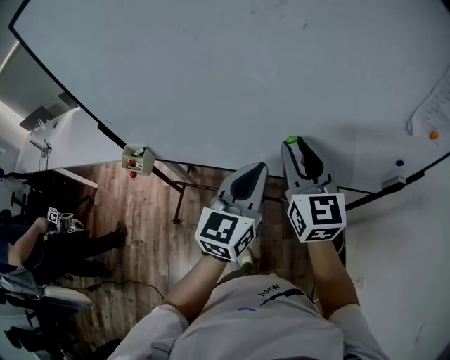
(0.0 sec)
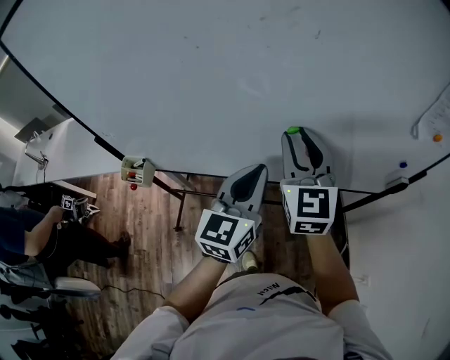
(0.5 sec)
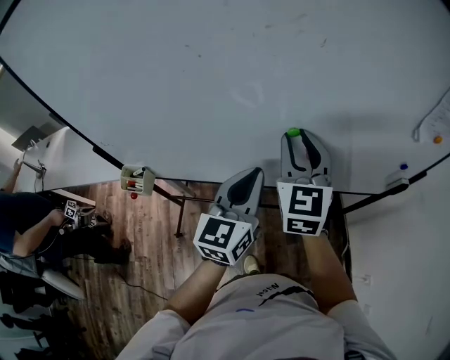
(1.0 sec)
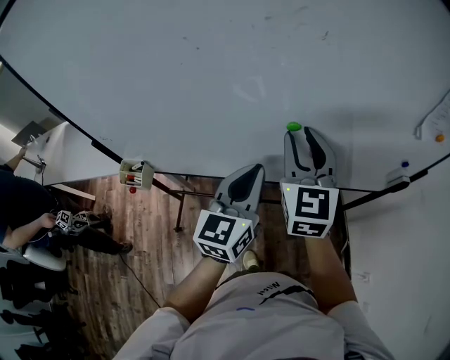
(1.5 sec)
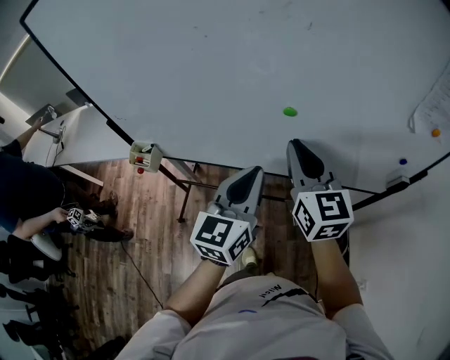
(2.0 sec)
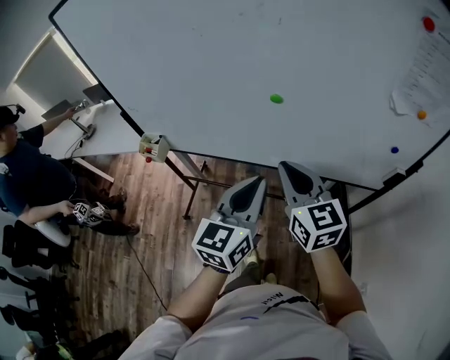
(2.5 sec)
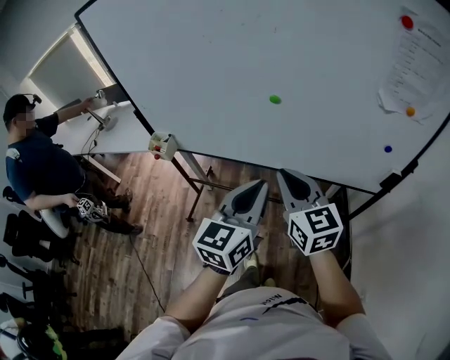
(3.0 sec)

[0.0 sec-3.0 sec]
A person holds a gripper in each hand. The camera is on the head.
0.0 sec to 1.5 sec: The left gripper changes place by approximately 5 cm; the right gripper shifts by approximately 5 cm.
1.5 sec to 3.0 sec: Both grippers move backward, roughly 20 cm. The right gripper rotates roughly 30 degrees, and closes.

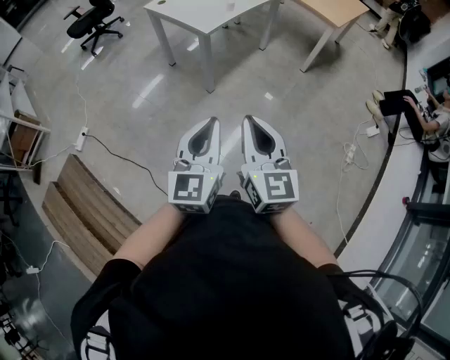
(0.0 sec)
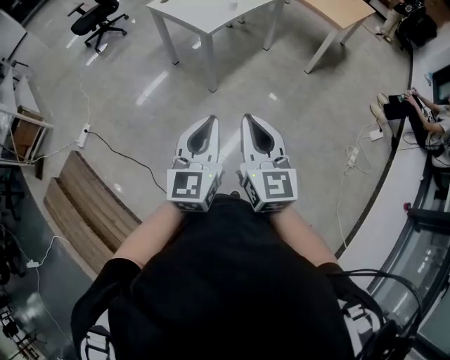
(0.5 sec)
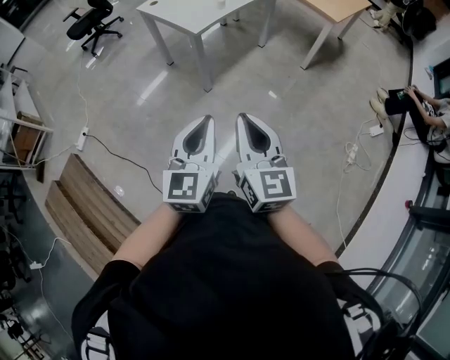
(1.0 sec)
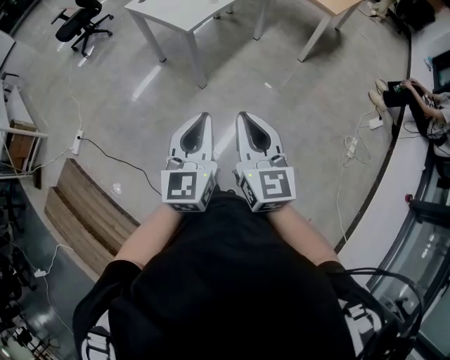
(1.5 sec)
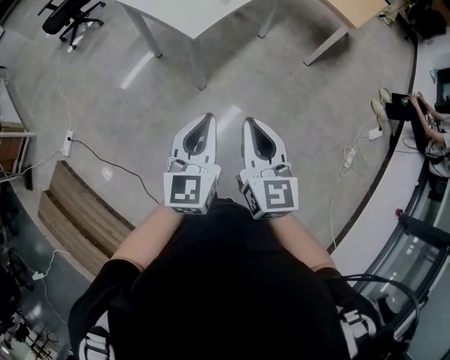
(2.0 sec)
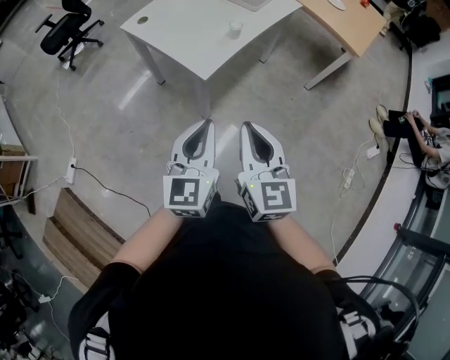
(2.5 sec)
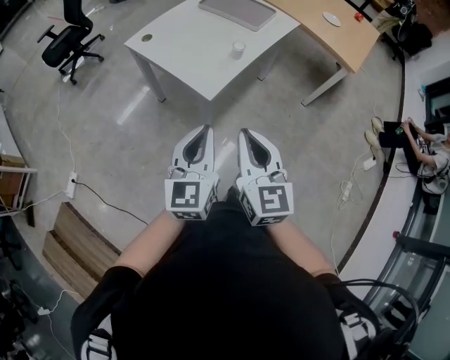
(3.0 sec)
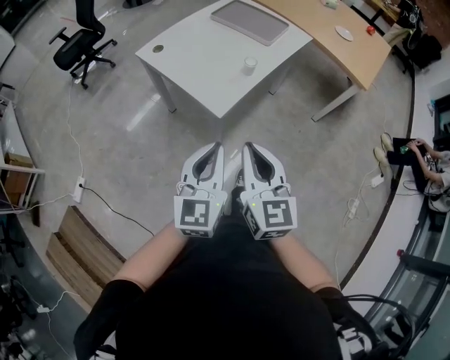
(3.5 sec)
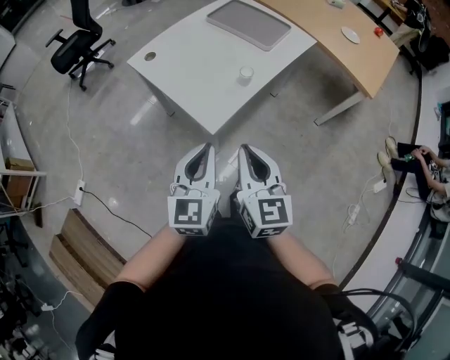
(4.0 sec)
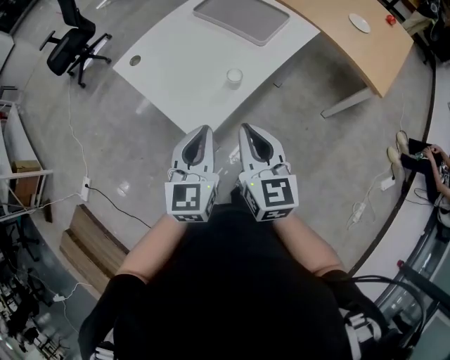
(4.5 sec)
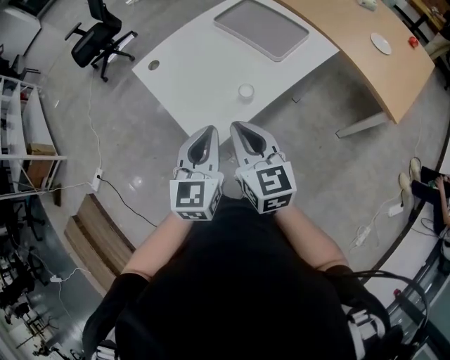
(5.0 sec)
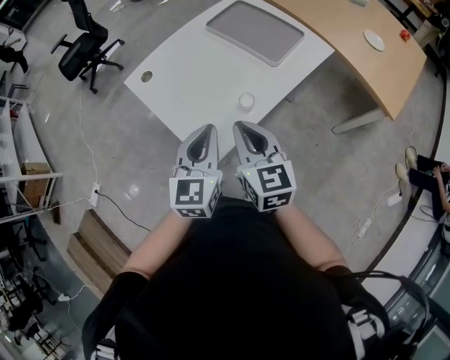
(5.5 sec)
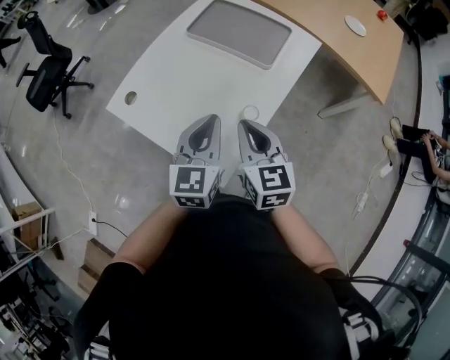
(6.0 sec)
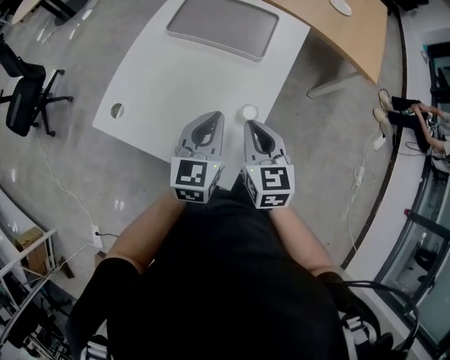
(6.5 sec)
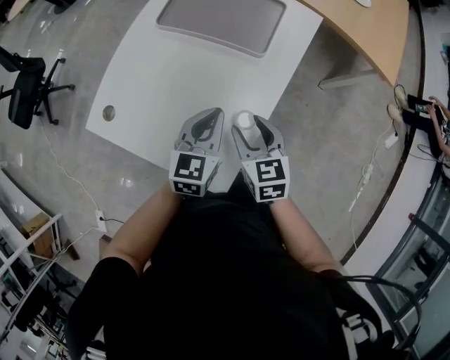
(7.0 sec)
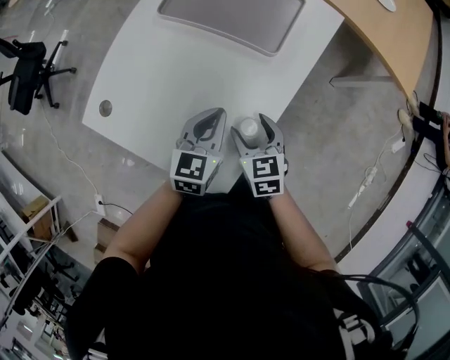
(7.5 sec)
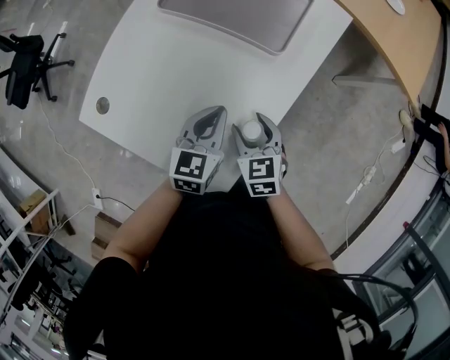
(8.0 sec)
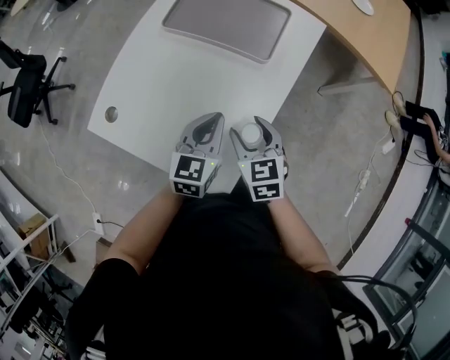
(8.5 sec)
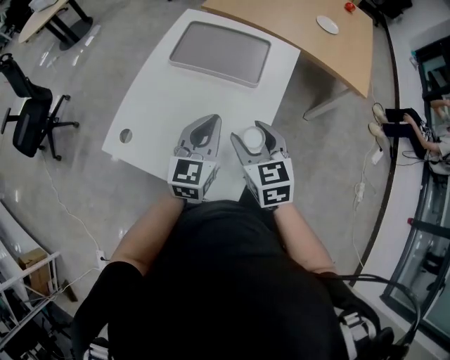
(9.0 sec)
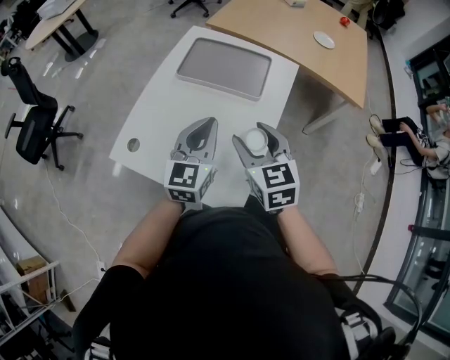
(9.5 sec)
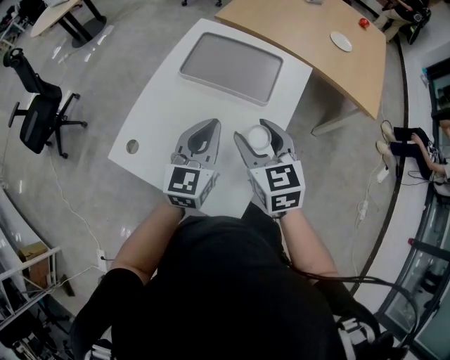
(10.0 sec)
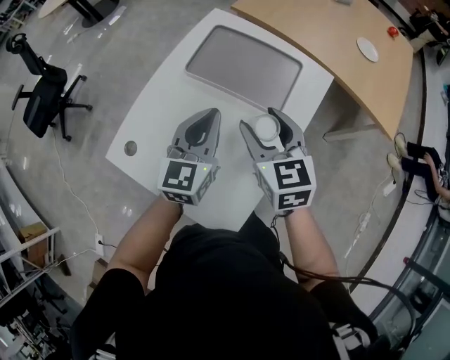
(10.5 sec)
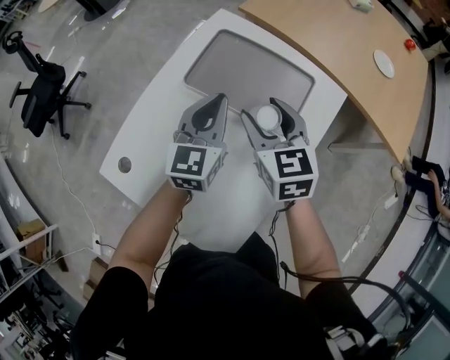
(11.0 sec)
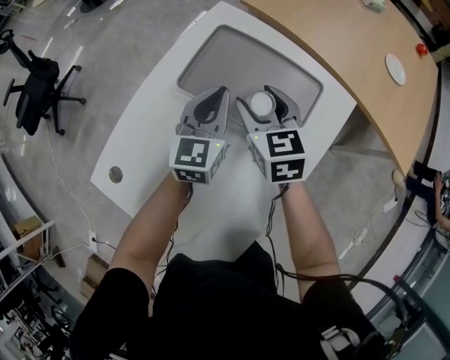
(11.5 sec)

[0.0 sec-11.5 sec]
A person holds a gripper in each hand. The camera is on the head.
0.0 sec to 2.0 sec: Both grippers move forward, approximately 25 cm.
2.0 sec to 4.0 sec: Both grippers travel together forward, about 30 cm.
4.0 sec to 6.0 sec: Both grippers travel together forward, roughly 35 cm.
6.0 sec to 7.5 sec: The grippers both shift downward and forward by approximately 20 cm. The right gripper changes its angle by roughly 20 degrees, and opens up, while the left gripper turns by approximately 20 degrees.
7.5 sec to 9.5 sec: Both grippers travel together upward, approximately 25 cm. The left gripper swivels roughly 20 degrees; the right gripper swivels approximately 20 degrees.
9.5 sec to 11.5 sec: The two grippers go some 40 cm forward and downward.

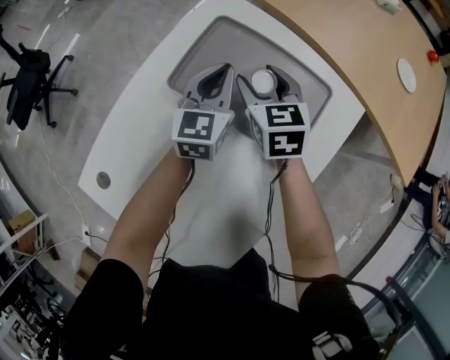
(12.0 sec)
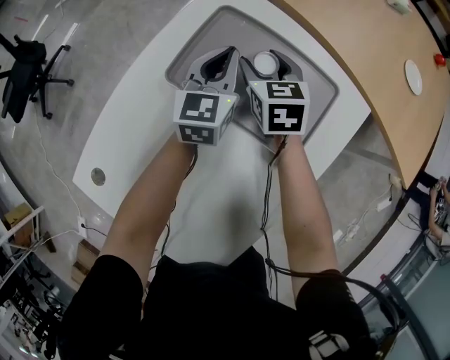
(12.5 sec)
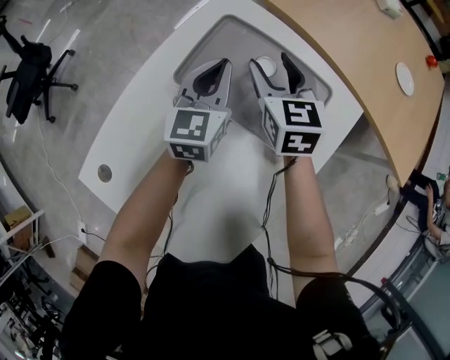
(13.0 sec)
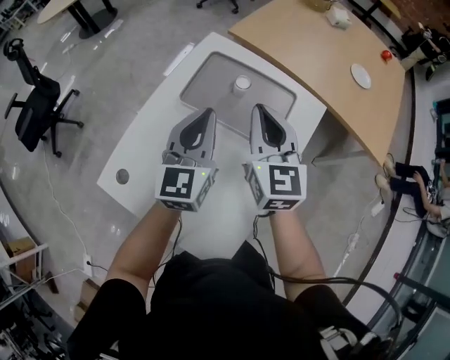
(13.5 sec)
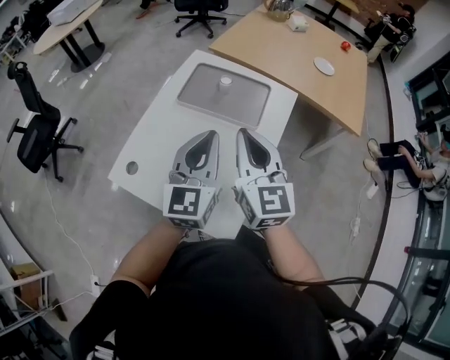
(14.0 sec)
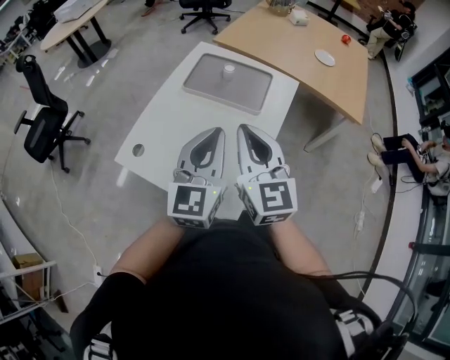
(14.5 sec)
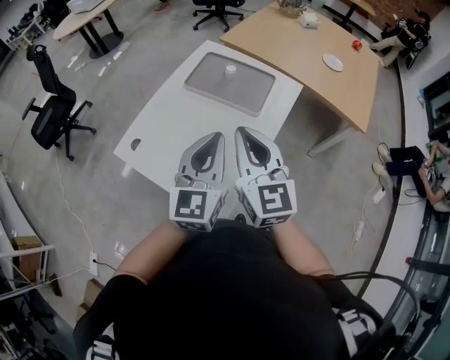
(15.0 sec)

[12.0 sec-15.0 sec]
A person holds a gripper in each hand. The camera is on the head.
12.0 sec to 13.5 sec: The right gripper moves upward and backward, approximately 30 cm, turns by some 30 degrees, and closes its fingers. The left gripper is displaced backward and upward by about 25 cm.
13.5 sec to 15.0 sec: The right gripper heads backward, covering approximately 30 cm; the left gripper is displaced backward and upward by some 30 cm.

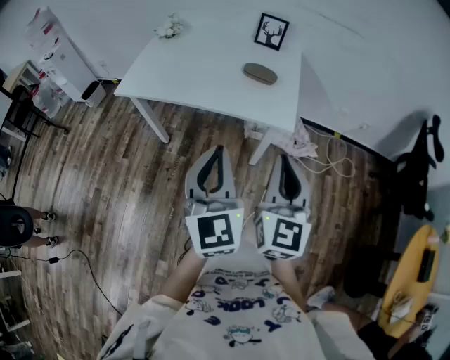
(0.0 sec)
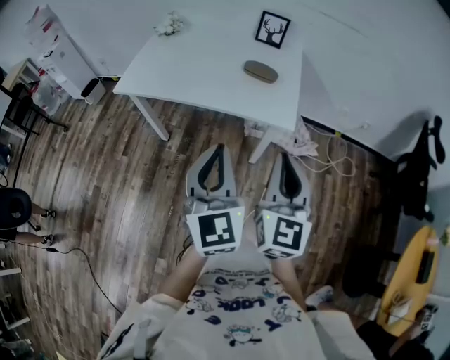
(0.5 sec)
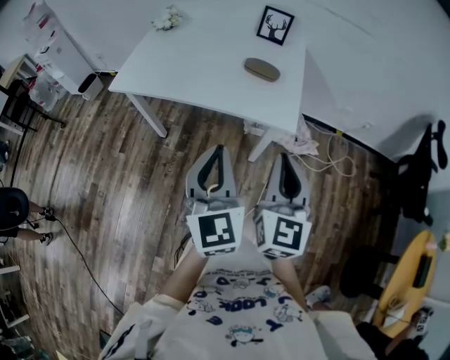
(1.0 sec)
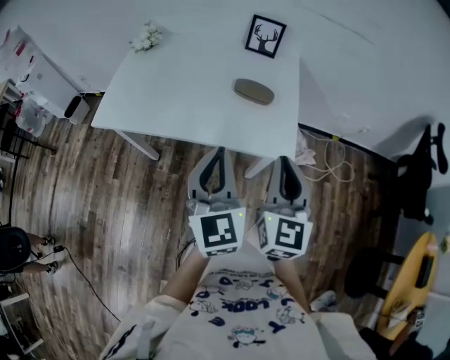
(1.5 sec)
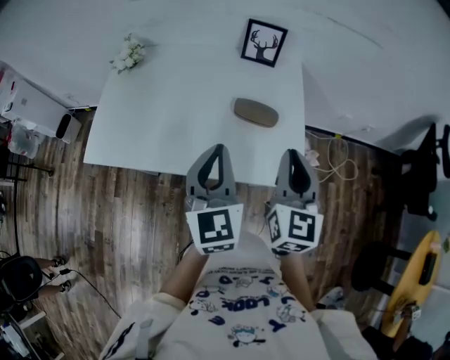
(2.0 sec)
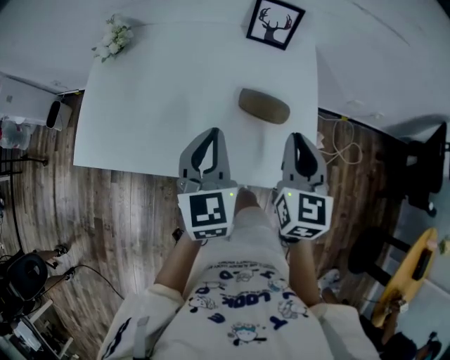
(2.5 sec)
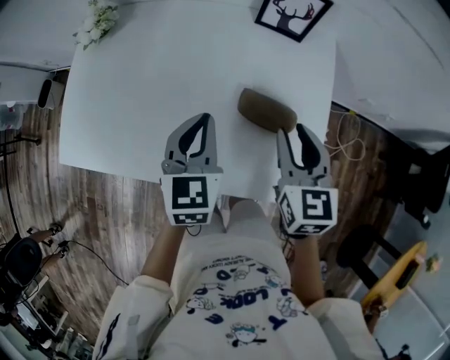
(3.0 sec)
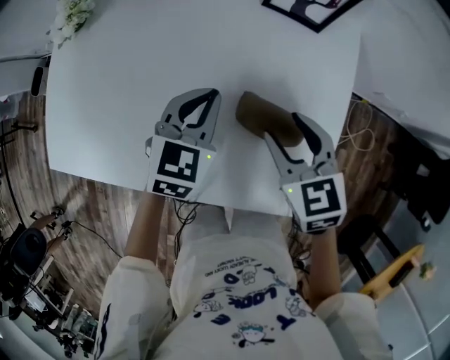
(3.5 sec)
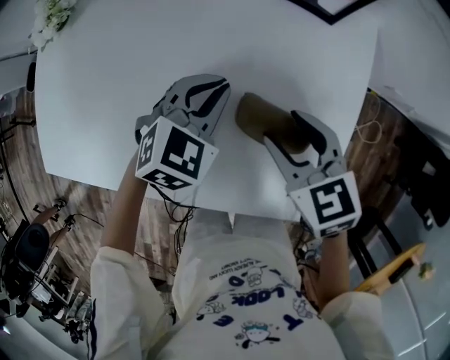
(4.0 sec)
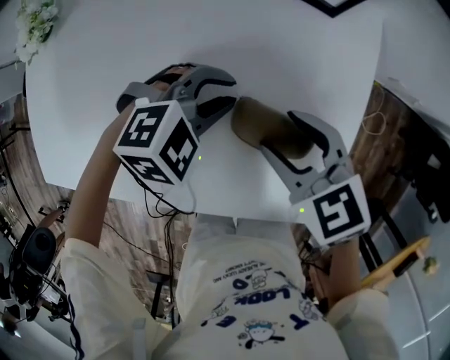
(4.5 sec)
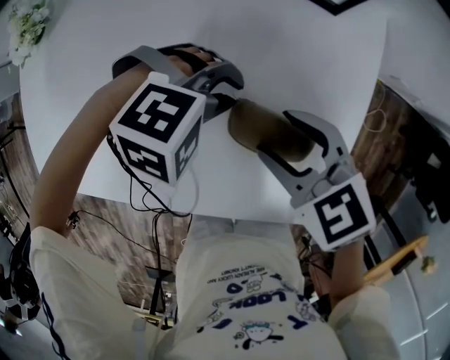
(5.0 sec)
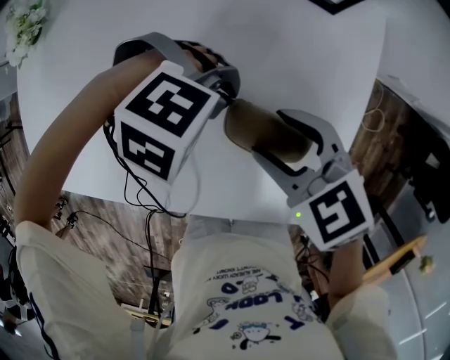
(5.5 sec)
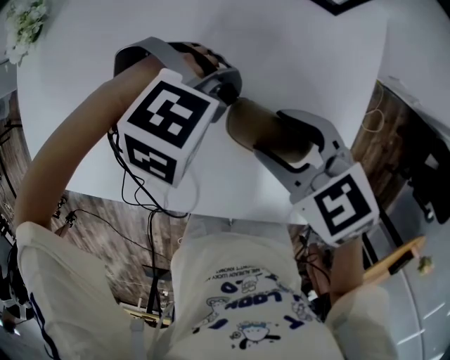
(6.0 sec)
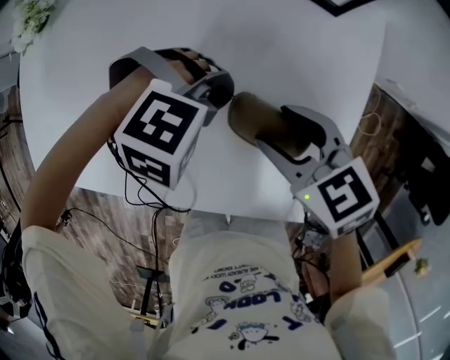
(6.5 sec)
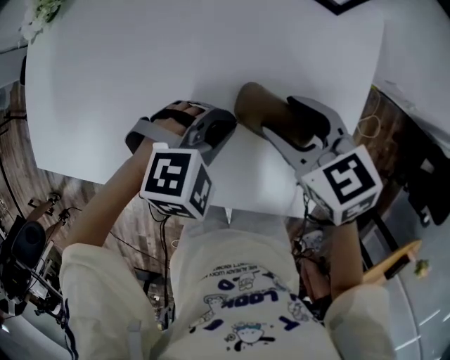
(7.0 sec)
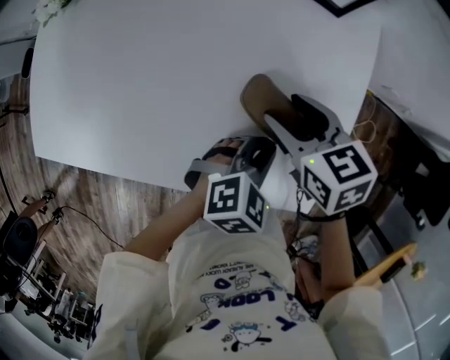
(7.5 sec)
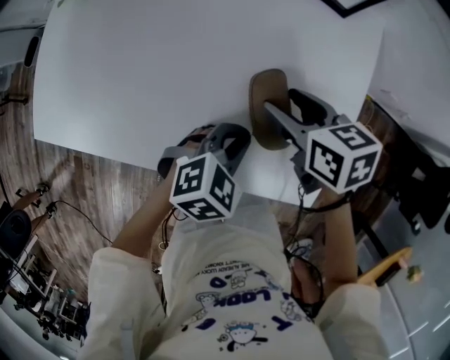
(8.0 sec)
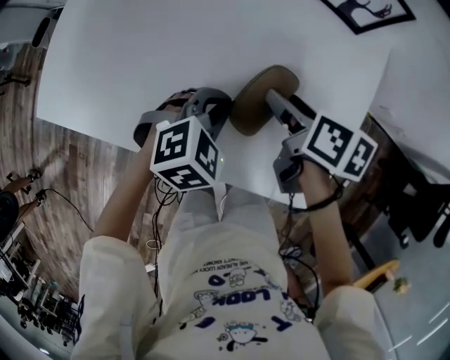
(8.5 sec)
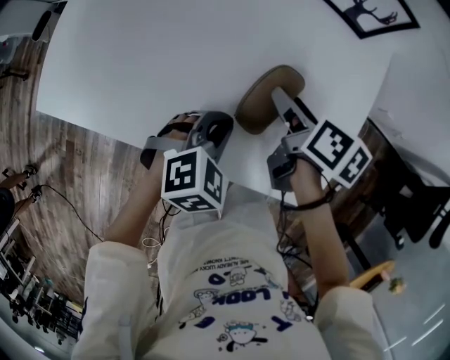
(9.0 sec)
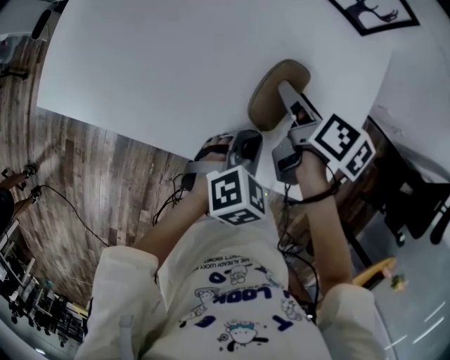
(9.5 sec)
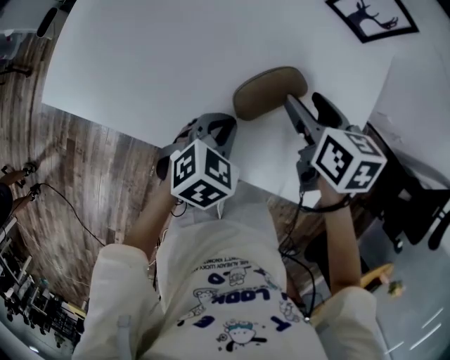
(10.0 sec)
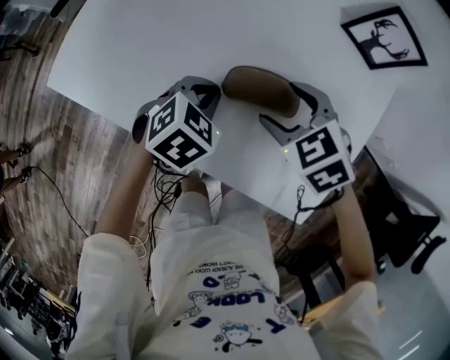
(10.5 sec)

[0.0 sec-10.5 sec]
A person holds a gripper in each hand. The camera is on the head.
0.0 sec to 2.0 sec: Both grippers travel together forward, approximately 30 cm.
2.0 sec to 4.0 sec: Both grippers travel together forward and downward, about 30 cm. The right gripper angles its fingers downward, by about 40 degrees, and opens its fingers. Meanwhile the left gripper angles its fingers downward, by about 30 degrees.
4.0 sec to 6.5 sec: The left gripper rolls clockwise, seen from behind, by roughly 50 degrees, and opens and closes again.
6.5 sec to 8.5 sec: The right gripper rotates around the line of its fingers by about 50 degrees, clockwise from behind; the left gripper changes place by roughly 10 cm, and rolls counterclockwise, seen from behind, by some 50 degrees.
8.5 sec to 10.5 sec: The grippers both shift to the left by approximately 5 cm. The right gripper twists roughly 80 degrees counterclockwise, seen from behind, while the left gripper rotates some 20 degrees.
